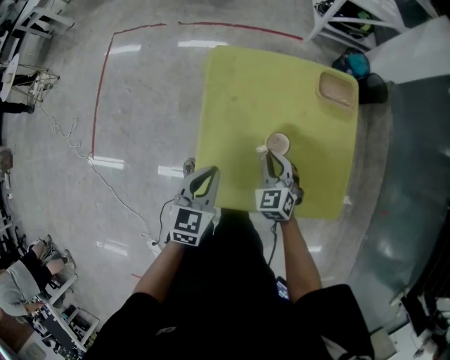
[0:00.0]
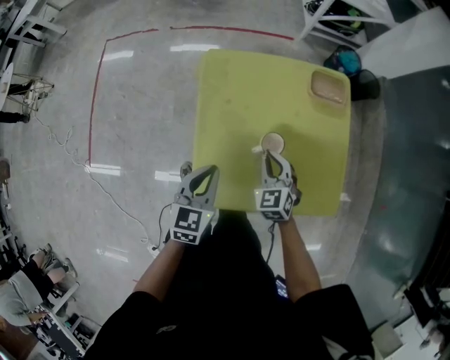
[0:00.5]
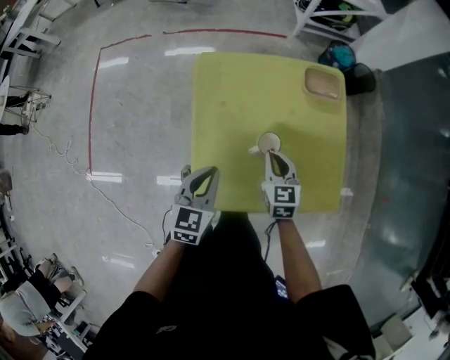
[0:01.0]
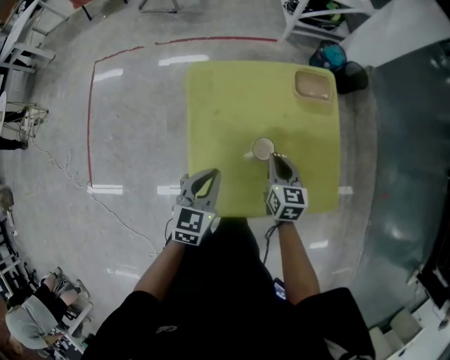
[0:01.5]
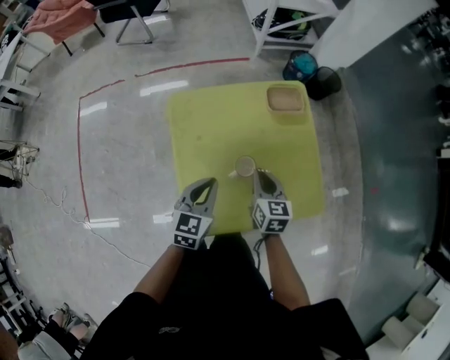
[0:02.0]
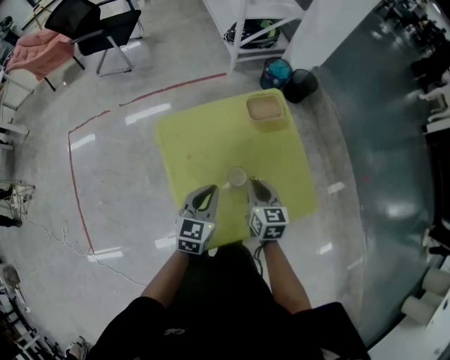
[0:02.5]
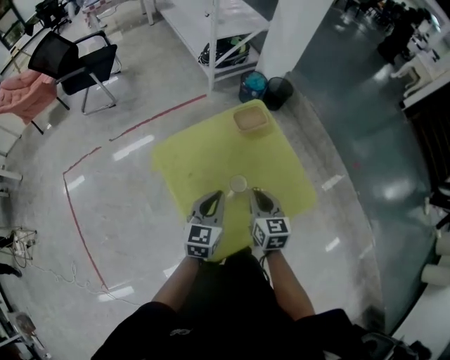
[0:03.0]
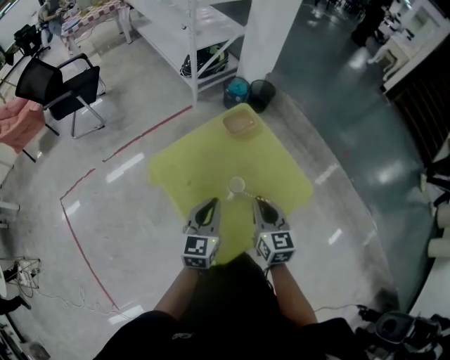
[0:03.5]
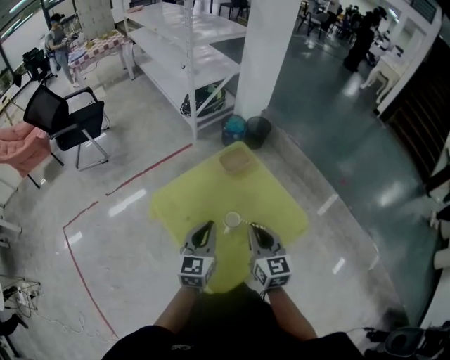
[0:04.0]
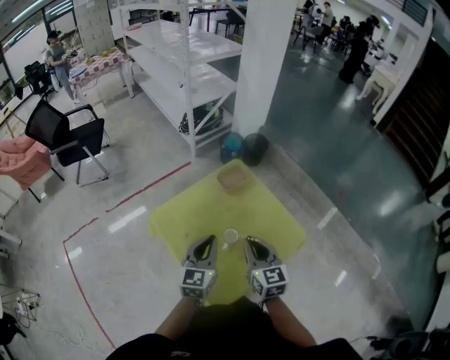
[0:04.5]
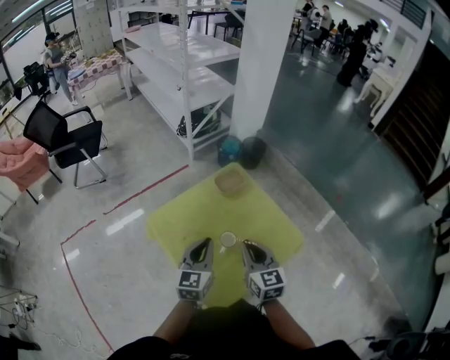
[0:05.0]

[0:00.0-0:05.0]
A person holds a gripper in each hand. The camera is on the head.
0:00.0 to 0:02.5: The left gripper goes approximately 10 cm forward and to the right, and swivels approximately 20 degrees. The right gripper moves upward and to the right, about 10 cm, and rotates around the line of its fingers by approximately 50 degrees, clockwise from behind.
0:02.5 to 0:05.0: The left gripper shifts about 10 cm upward, while the right gripper shifts about 15 cm upward and backward.

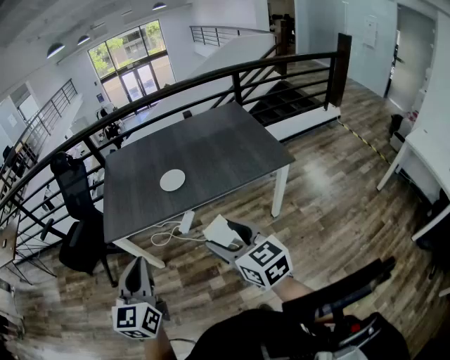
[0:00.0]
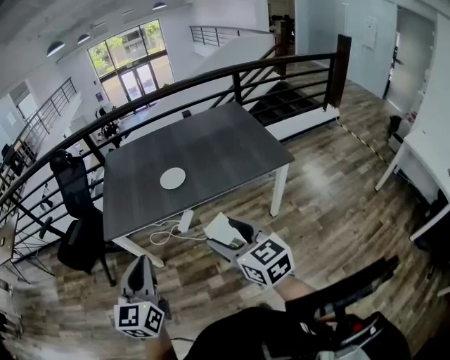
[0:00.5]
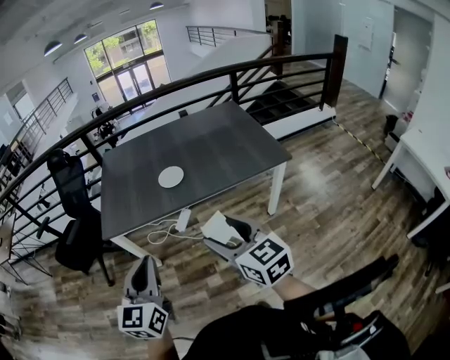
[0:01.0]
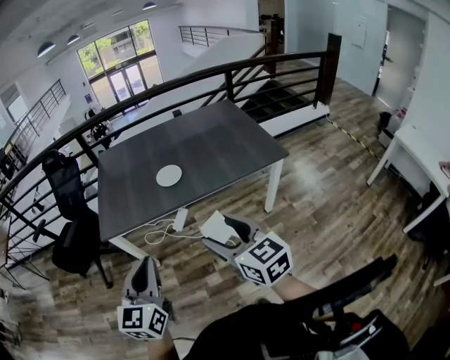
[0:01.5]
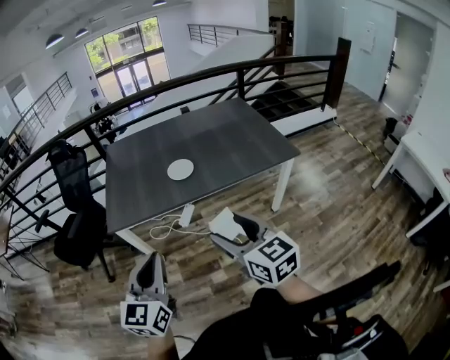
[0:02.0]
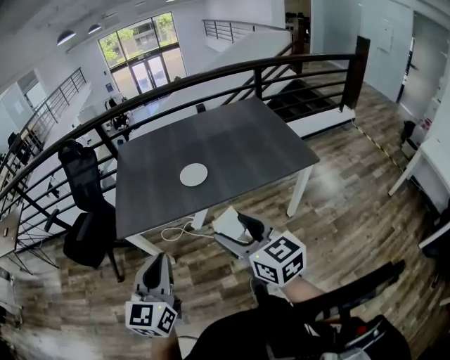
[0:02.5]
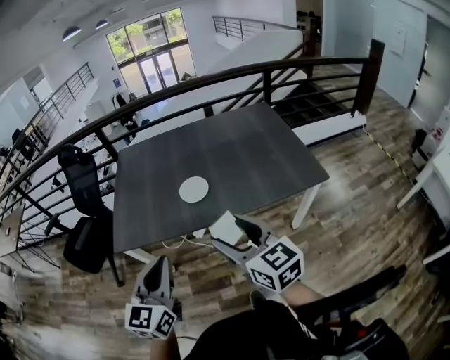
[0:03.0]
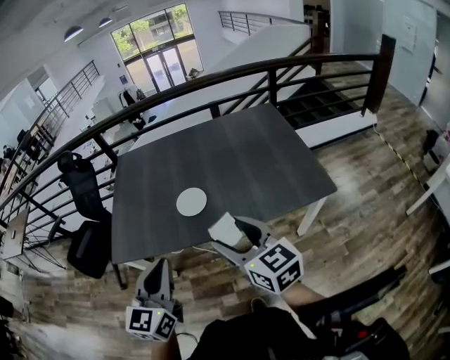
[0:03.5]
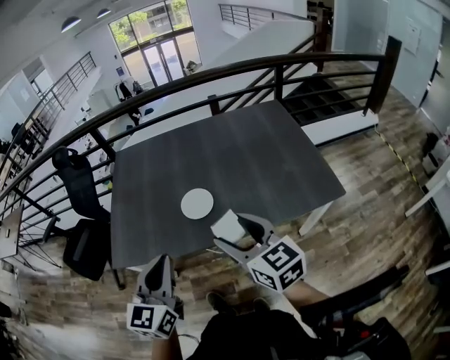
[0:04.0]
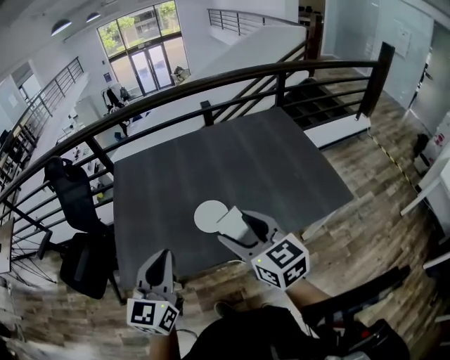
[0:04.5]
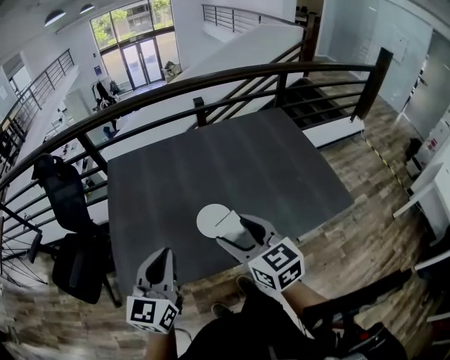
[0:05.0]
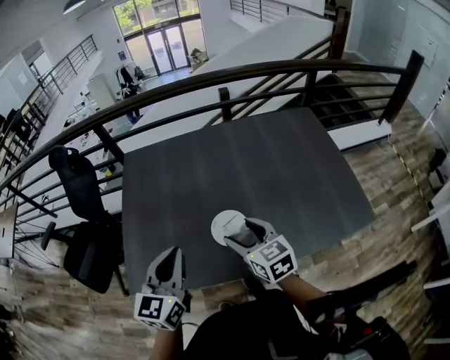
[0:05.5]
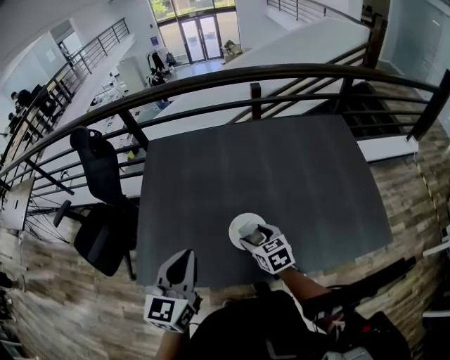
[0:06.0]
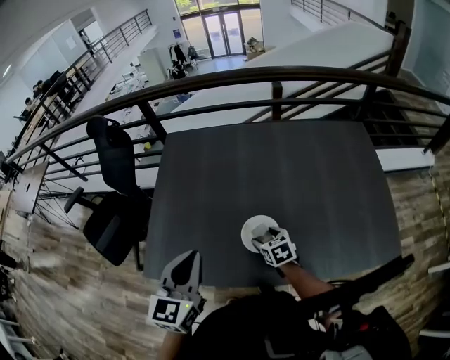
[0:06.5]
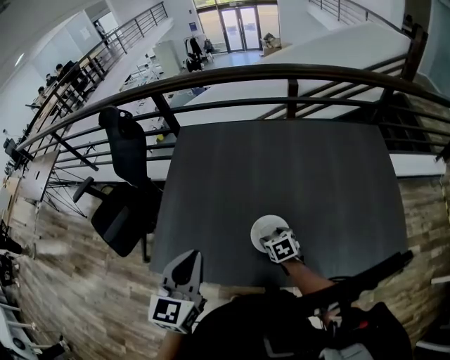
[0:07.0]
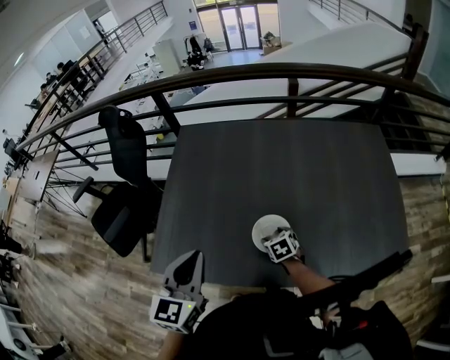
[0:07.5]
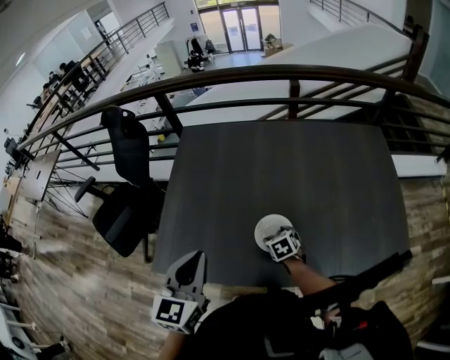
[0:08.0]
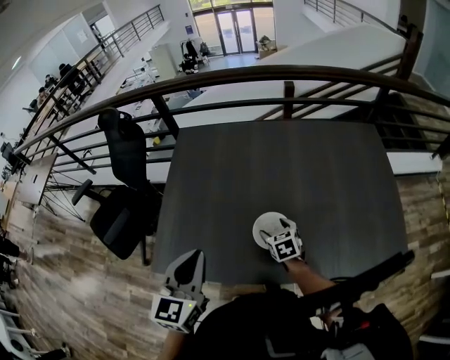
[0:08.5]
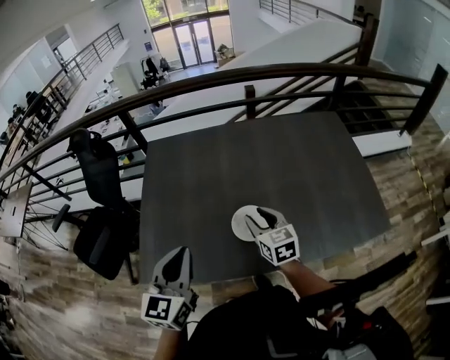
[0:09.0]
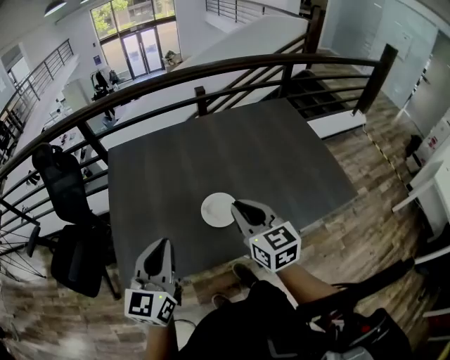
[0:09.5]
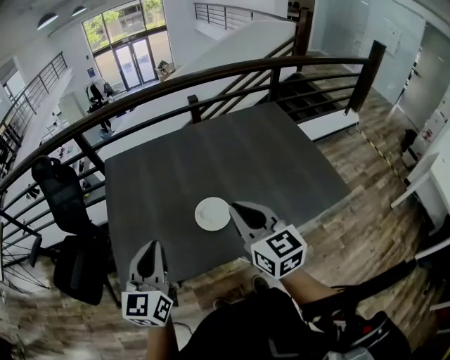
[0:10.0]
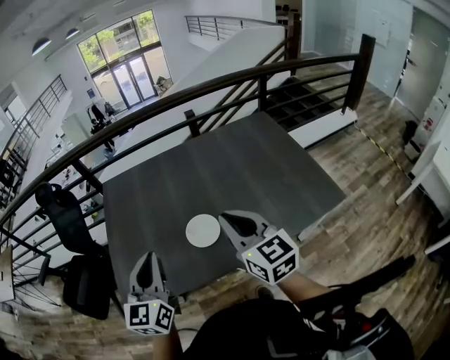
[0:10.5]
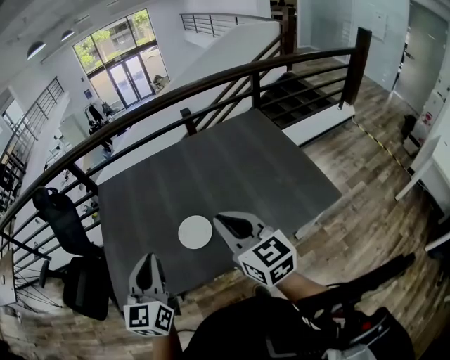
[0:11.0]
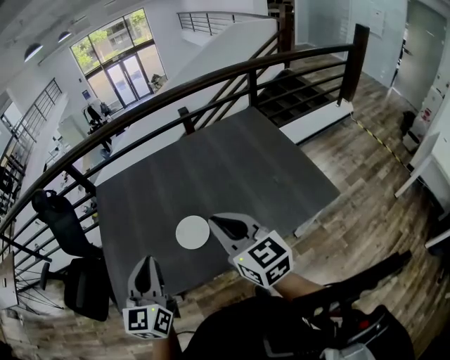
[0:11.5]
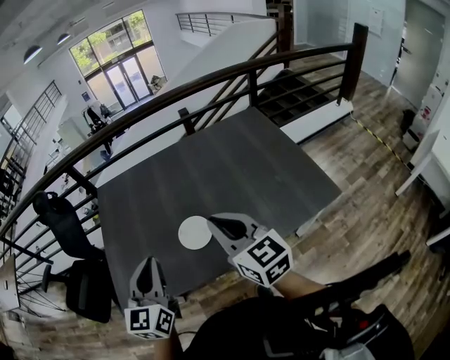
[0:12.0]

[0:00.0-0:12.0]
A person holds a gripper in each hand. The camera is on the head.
0:00.0 to 0:02.0: Both grippers travel together to the left, roughly 5 cm.
0:02.0 to 0:04.0: Both grippers move forward, approximately 30 cm.
0:04.0 to 0:06.0: The left gripper shifts about 25 cm forward and to the left; the right gripper goes approximately 35 cm forward and downward, and swivels approximately 30 degrees.
0:06.0 to 0:08.0: The right gripper heads downward, covering about 10 cm, and changes its angle by approximately 20 degrees.
0:08.0 to 0:10.0: The left gripper travels backward by about 5 cm. Meanwhile the right gripper goes approximately 35 cm upward, tips its fingers upward by some 50 degrees, and closes its fingers.
0:10.0 to 0:12.0: Both grippers move to the right, about 10 cm.

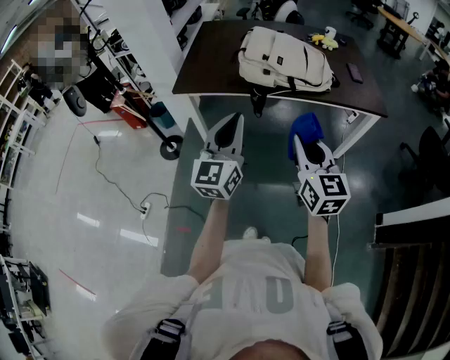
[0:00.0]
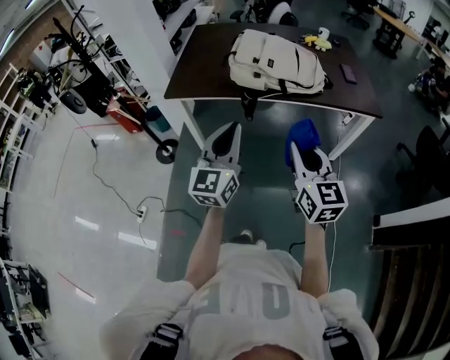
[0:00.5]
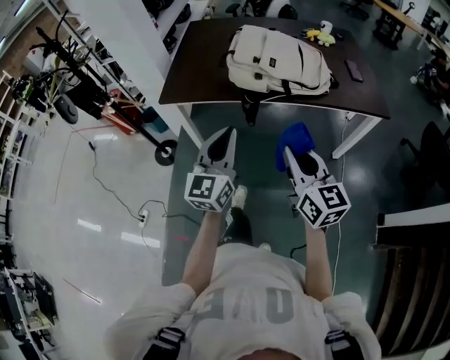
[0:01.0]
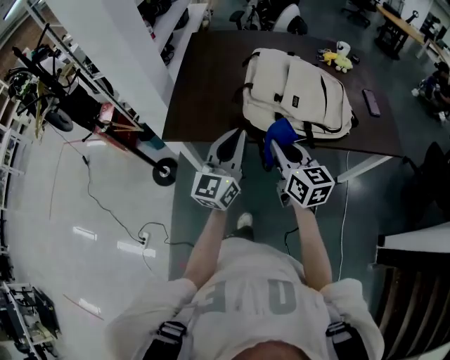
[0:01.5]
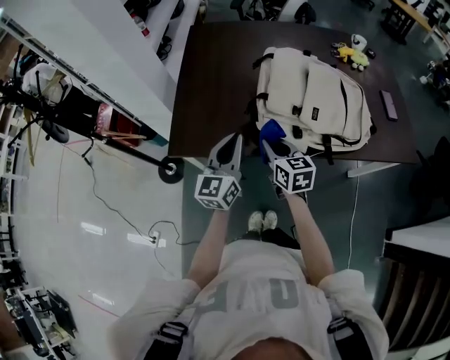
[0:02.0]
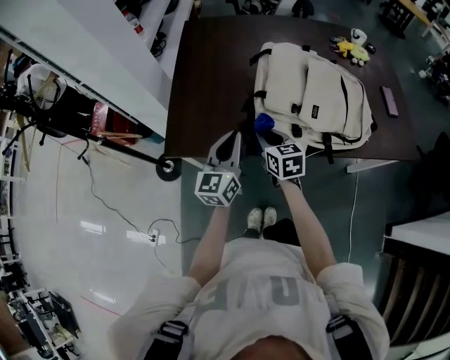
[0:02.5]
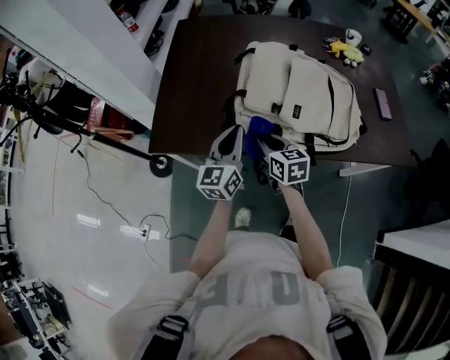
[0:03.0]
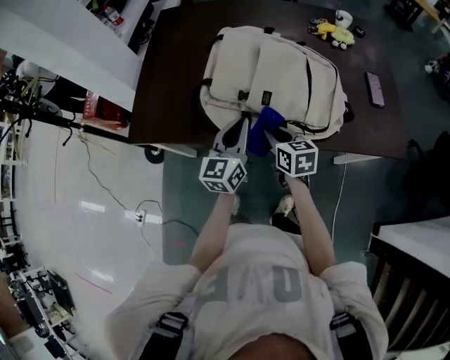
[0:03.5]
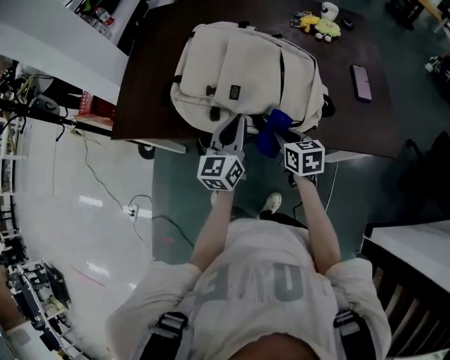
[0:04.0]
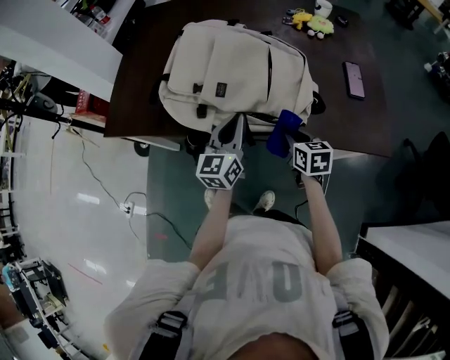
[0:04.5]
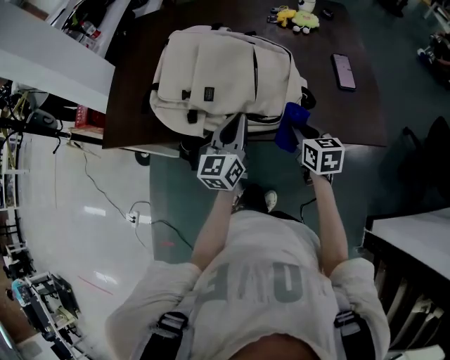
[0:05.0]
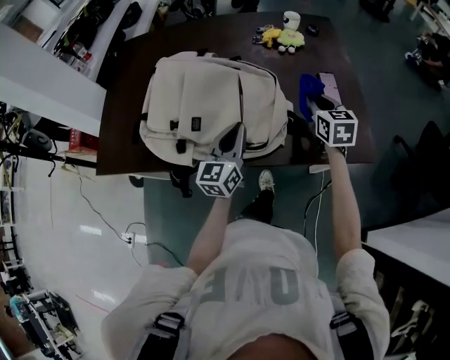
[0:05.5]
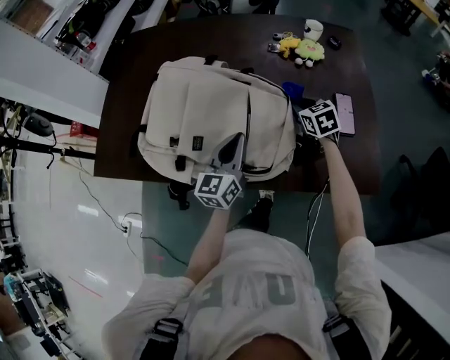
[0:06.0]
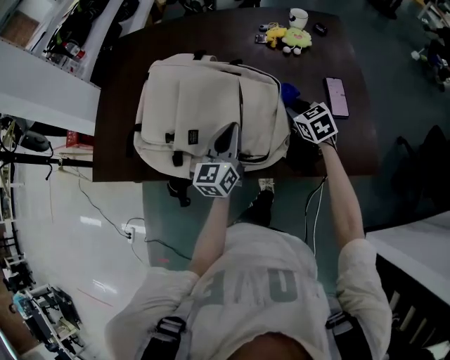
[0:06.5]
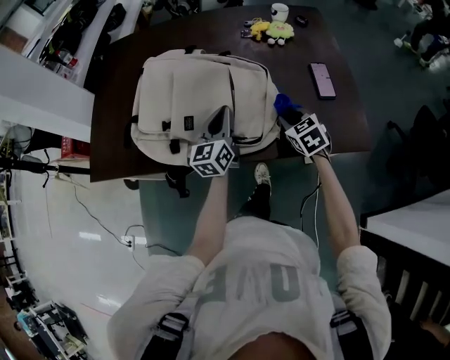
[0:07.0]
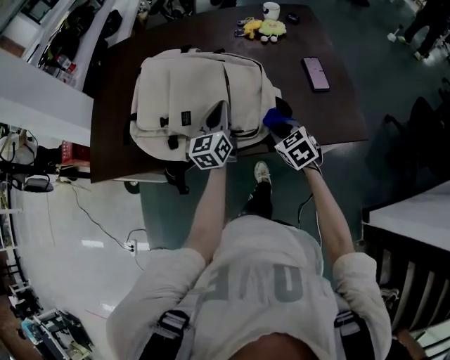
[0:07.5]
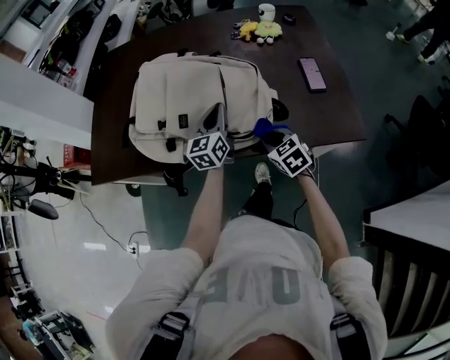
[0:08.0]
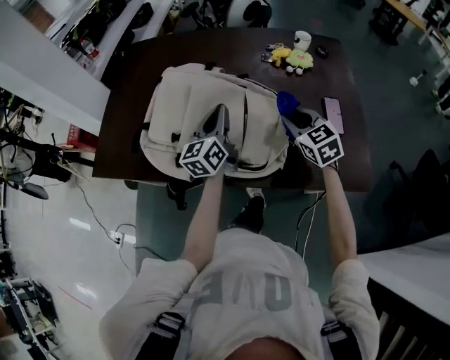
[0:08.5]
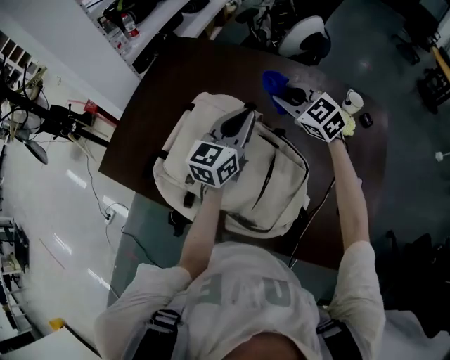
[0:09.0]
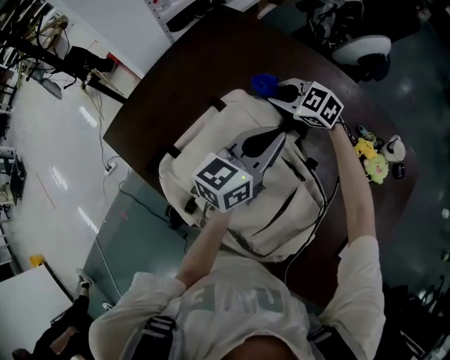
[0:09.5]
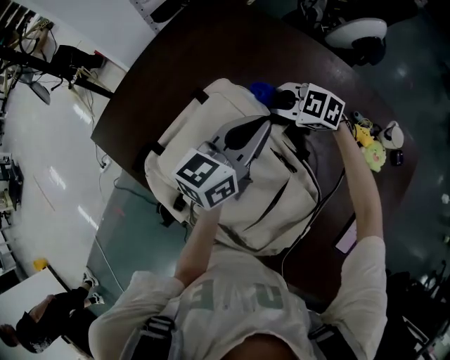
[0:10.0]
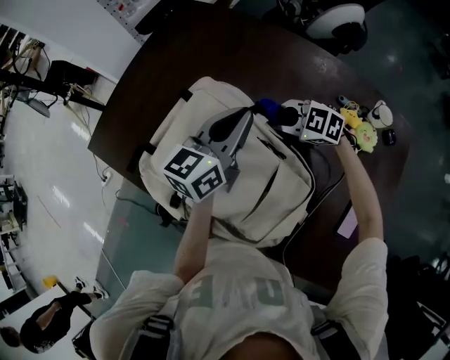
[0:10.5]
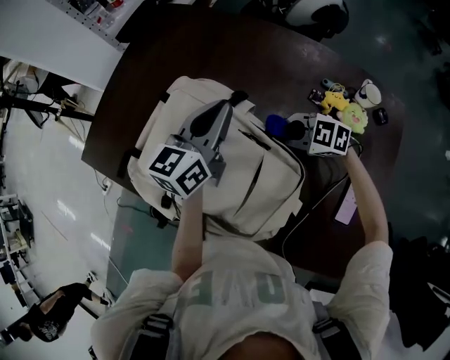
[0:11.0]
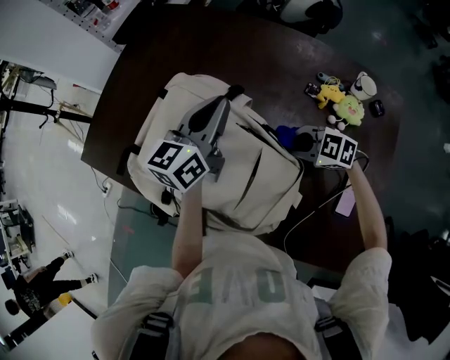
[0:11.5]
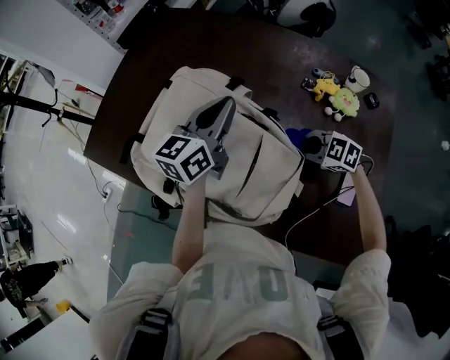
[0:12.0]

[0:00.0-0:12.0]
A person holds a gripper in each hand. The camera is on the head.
0:00.0 to 0:02.0: The left gripper heads forward, covering roughly 40 cm. The right gripper is displaced forward and downward by roughly 50 cm, and turns by about 20 degrees.
0:02.0 to 0:04.0: Both grippers travel together to the right, some 30 cm.
0:04.0 to 0:06.0: The left gripper is displaced to the right and forward by some 15 cm; the right gripper goes approximately 30 cm forward and to the right, and changes its angle by some 20 degrees.
0:06.0 to 0:08.0: The right gripper goes some 25 cm backward.
0:08.0 to 0:10.0: The left gripper changes place by approximately 20 cm. The right gripper goes upward and returns, about 20 cm each way, and swivels approximately 80 degrees.
0:10.0 to 0:12.0: The right gripper travels backward by approximately 25 cm, and swivels roughly 20 degrees, while the left gripper moves backward, approximately 5 cm.
